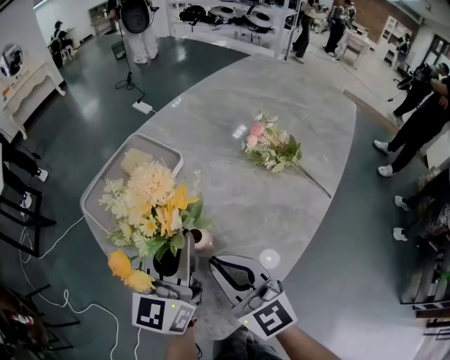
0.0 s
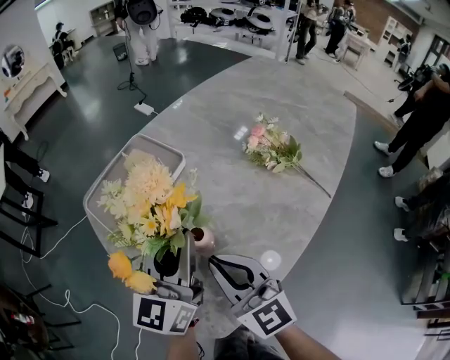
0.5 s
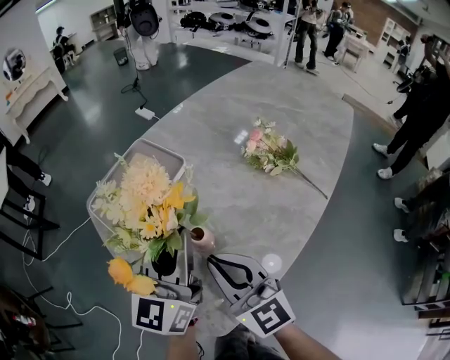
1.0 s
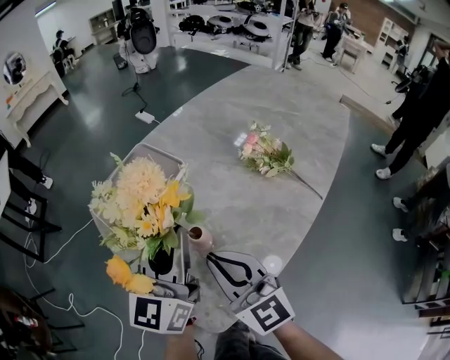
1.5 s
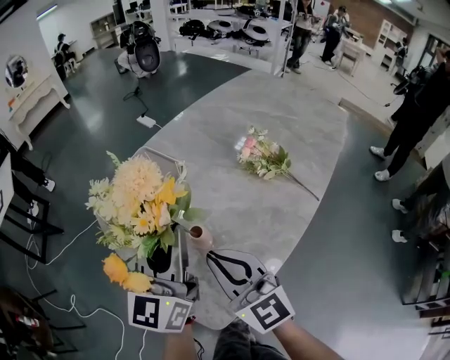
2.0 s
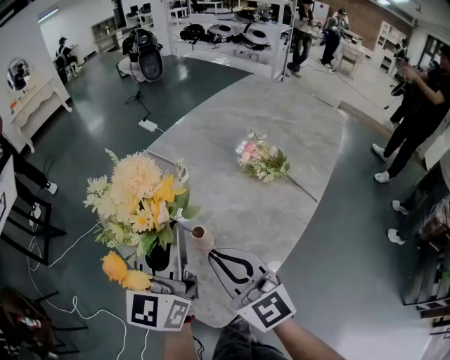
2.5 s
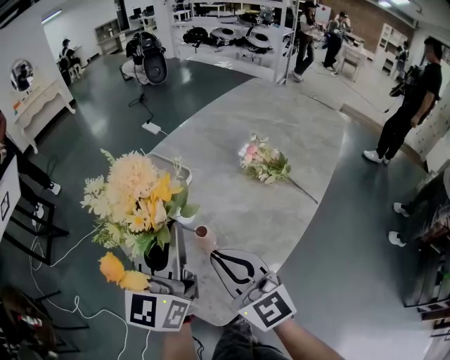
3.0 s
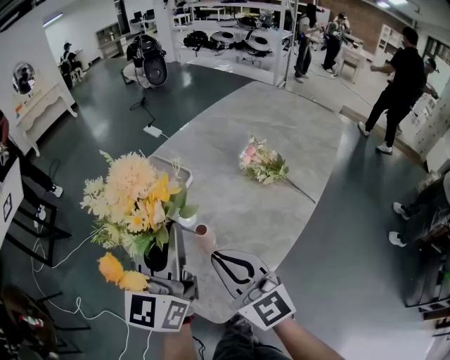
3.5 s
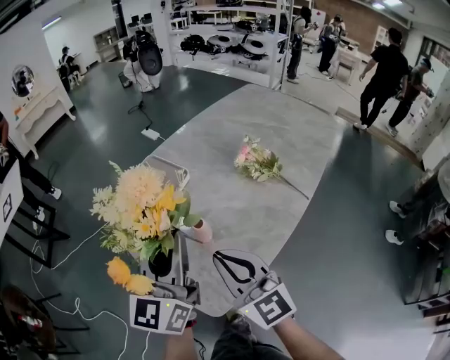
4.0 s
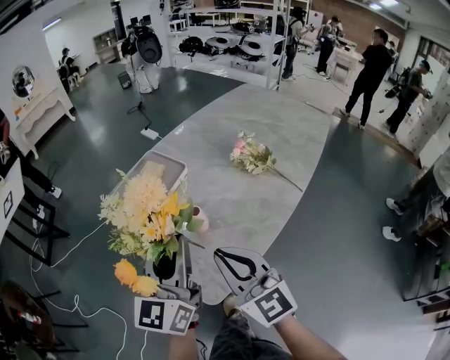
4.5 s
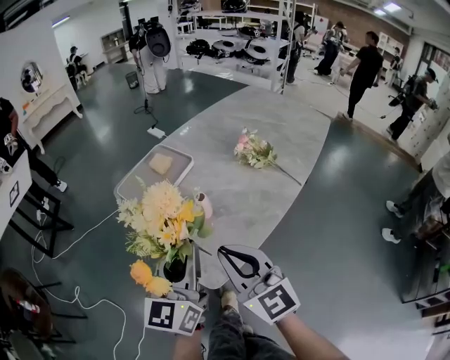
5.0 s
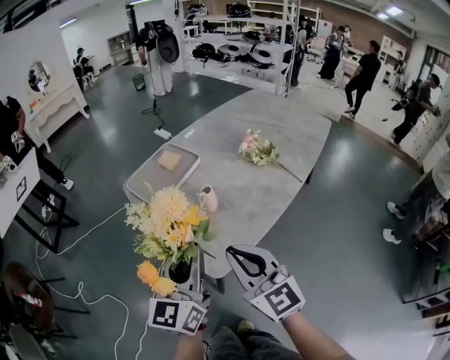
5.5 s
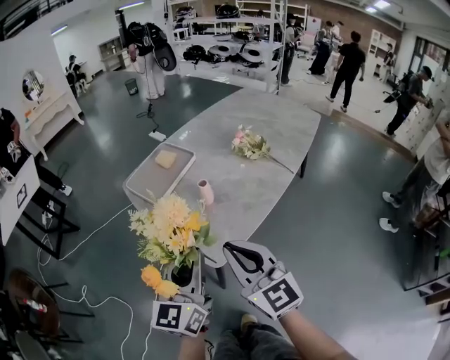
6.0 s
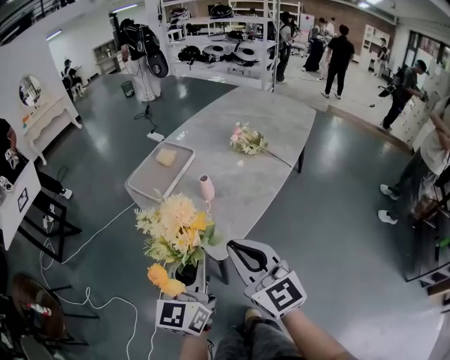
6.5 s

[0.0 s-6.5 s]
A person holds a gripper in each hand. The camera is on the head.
0.0 to 2.0 s: The left gripper is displaced upward by about 5 cm.
2.0 to 4.5 s: The grippers move only a little.
4.5 to 6.5 s: Both grippers travel together backward, about 25 cm.

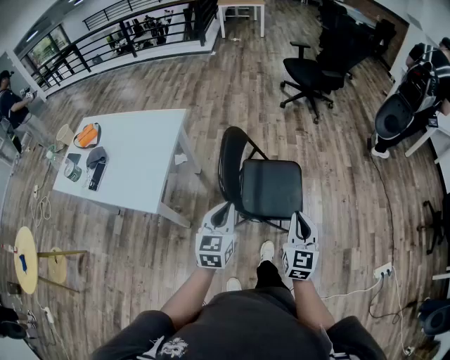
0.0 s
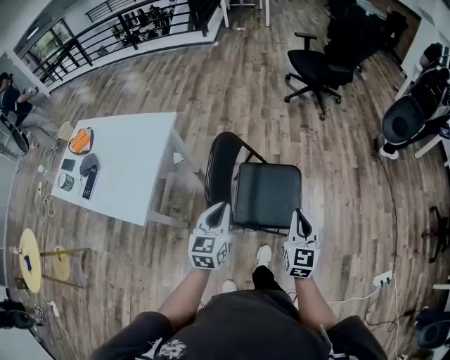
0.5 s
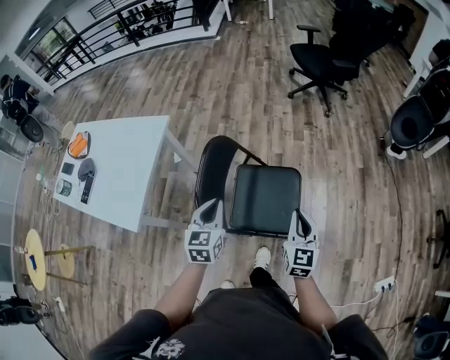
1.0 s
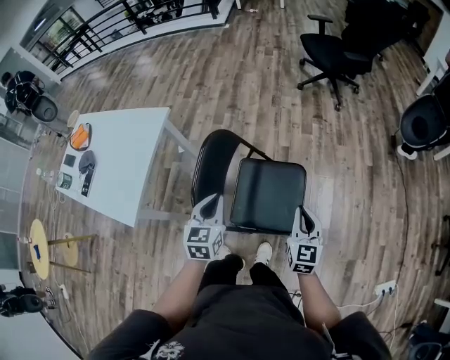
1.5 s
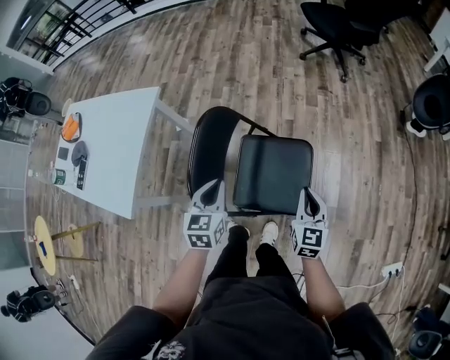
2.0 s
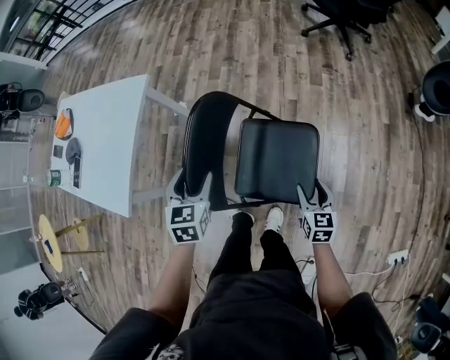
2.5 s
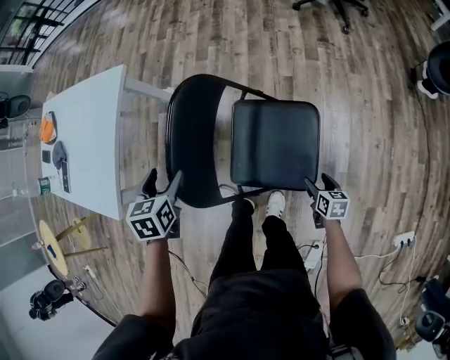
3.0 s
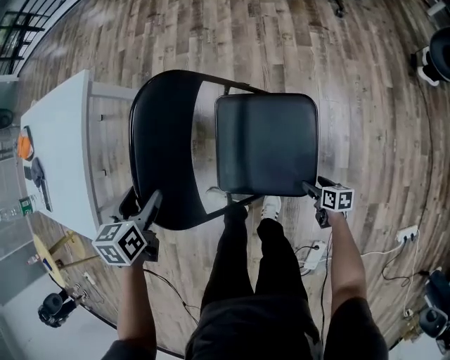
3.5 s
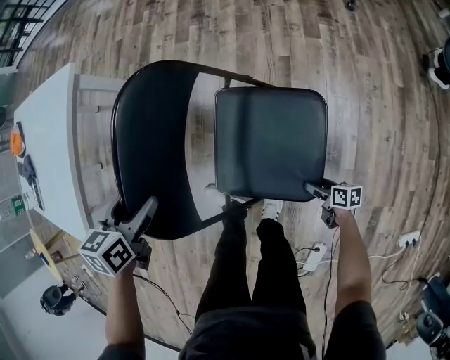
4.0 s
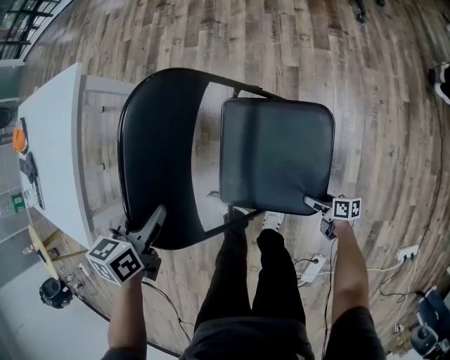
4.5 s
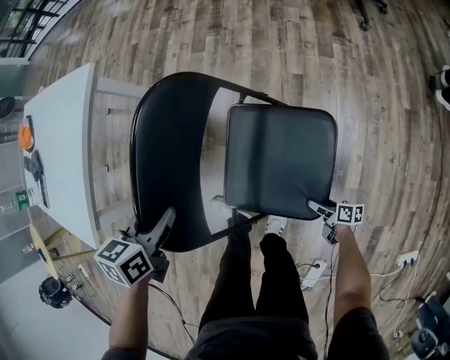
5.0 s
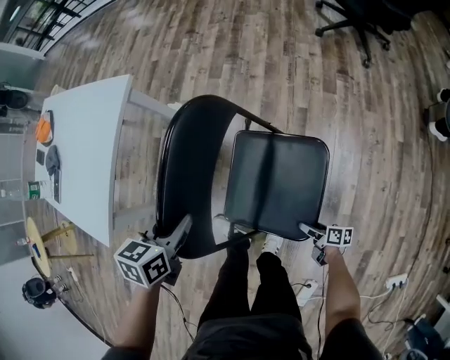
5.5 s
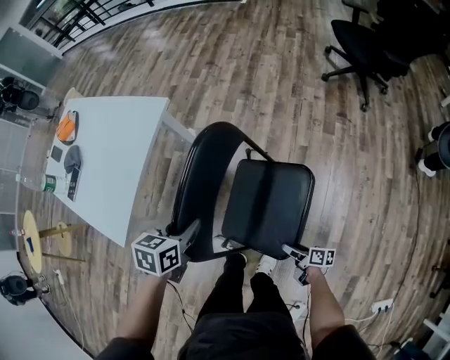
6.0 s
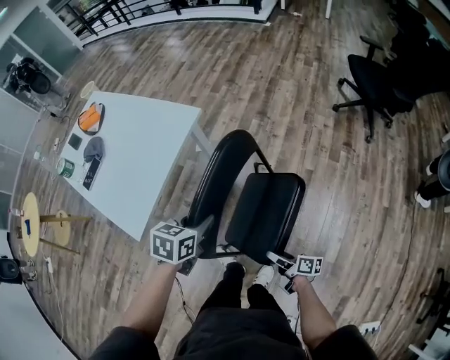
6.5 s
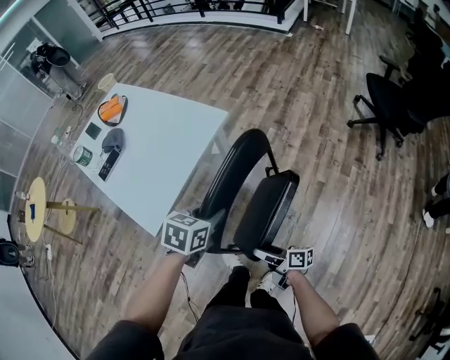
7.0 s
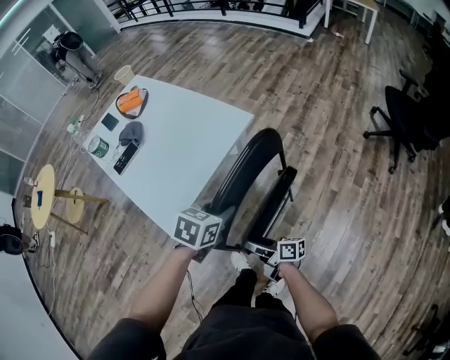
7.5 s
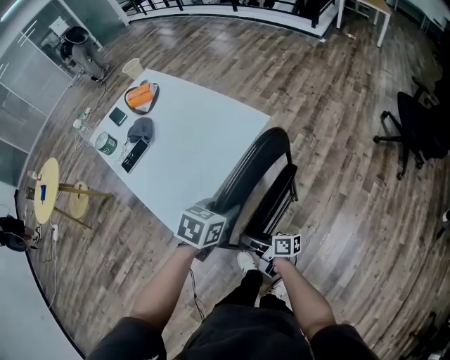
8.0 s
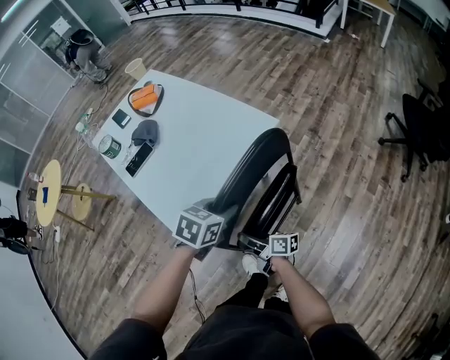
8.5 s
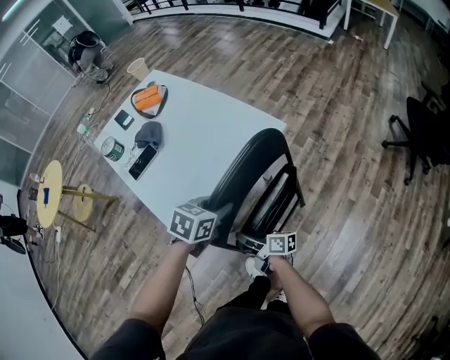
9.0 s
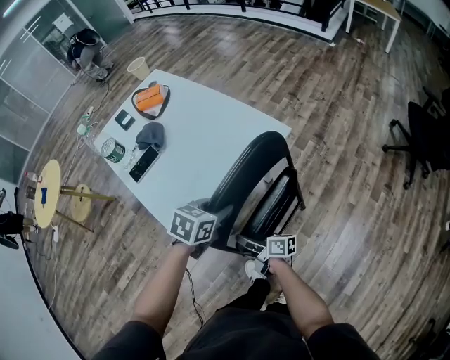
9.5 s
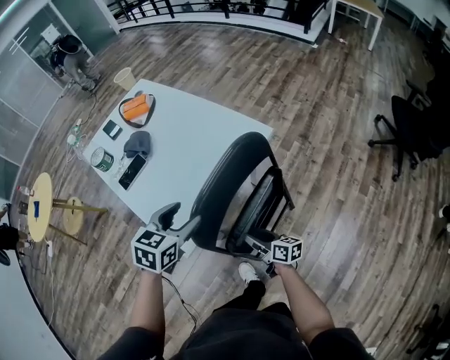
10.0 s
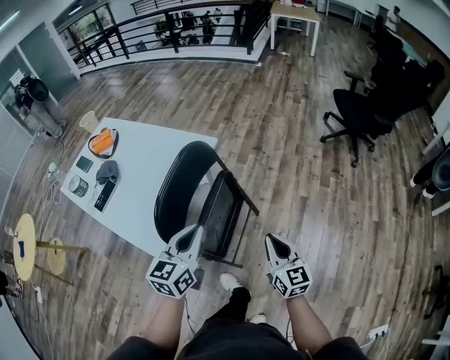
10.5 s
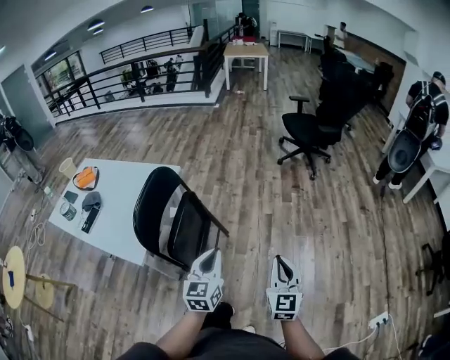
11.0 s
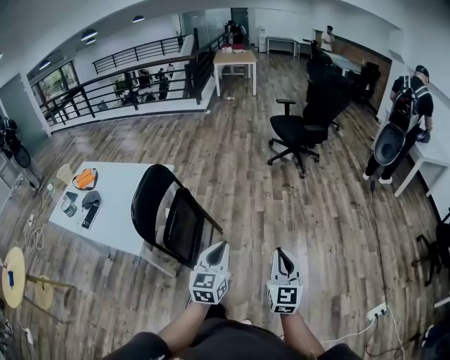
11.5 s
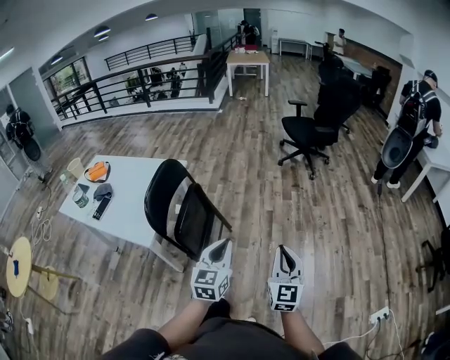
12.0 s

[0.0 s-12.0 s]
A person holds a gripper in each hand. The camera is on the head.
0.0 to 2.0 s: The left gripper shifts about 25 cm forward and downward; the right gripper moves forward, downward and to the right, roughly 35 cm.
2.0 to 4.0 s: The left gripper travels downward, to the left and forward by about 20 cm, swivels some 20 degrees, and opens. Meanwhile the right gripper is displaced downward by approximately 50 cm, turns by roughly 70 degrees, and opens.
4.0 to 6.0 s: The right gripper travels upward and to the left by about 25 cm. The left gripper travels upward by about 10 cm, and closes.
6.0 to 8.0 s: The right gripper goes some 50 cm to the left, forward and upward, and changes its angle by approximately 40 degrees; the left gripper moves to the left, forward and upward, roughly 20 cm.
8.0 to 10.0 s: The left gripper shifts approximately 15 cm to the left and forward, and opens; the right gripper heads forward, covering some 5 cm, travels to the left and back again, about 10 cm each way, and changes its angle by roughly 20 degrees.
10.0 to 12.0 s: Both grippers are carried about 50 cm. The left gripper tips its fingers upward by about 30 degrees, and closes its fingers; the right gripper rotates roughly 90 degrees, and closes.

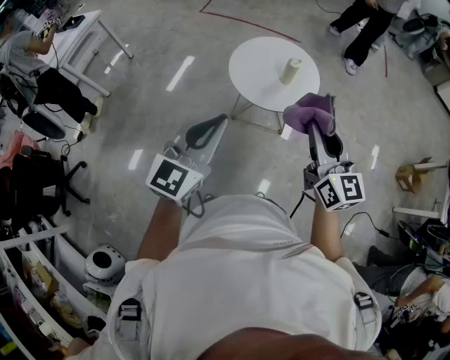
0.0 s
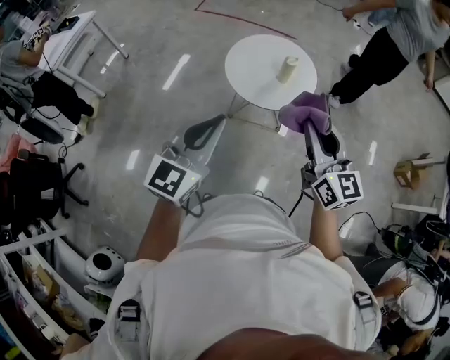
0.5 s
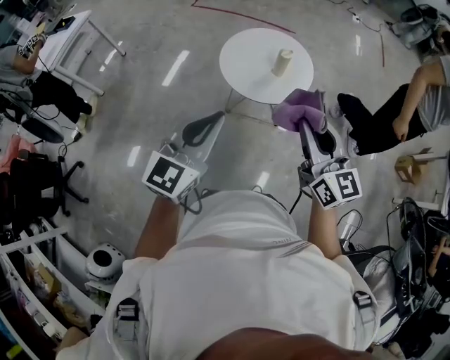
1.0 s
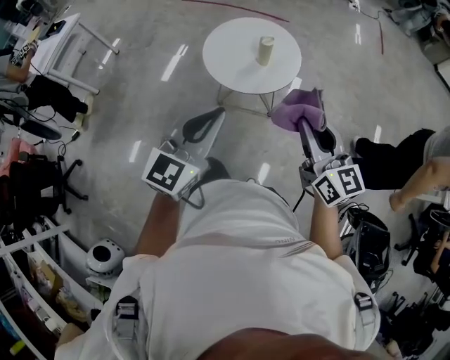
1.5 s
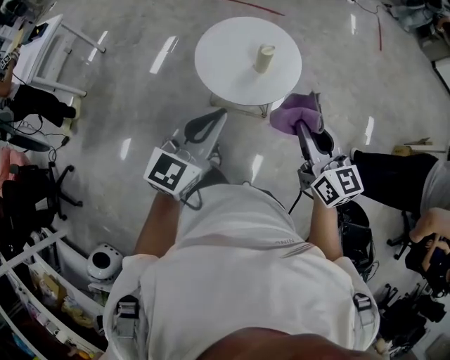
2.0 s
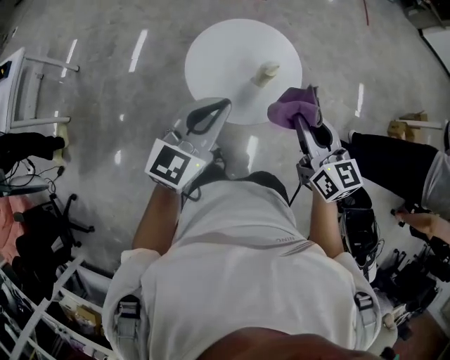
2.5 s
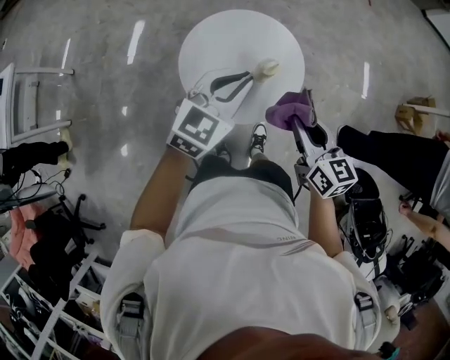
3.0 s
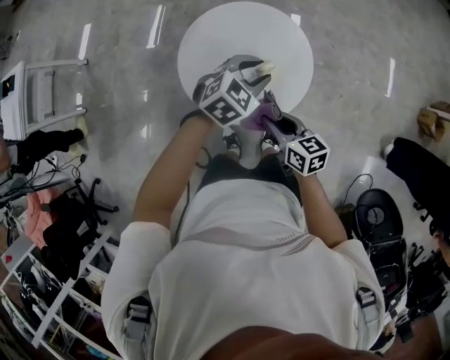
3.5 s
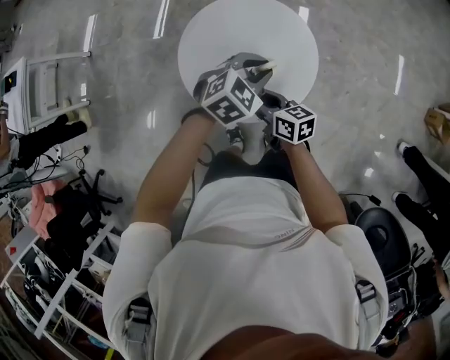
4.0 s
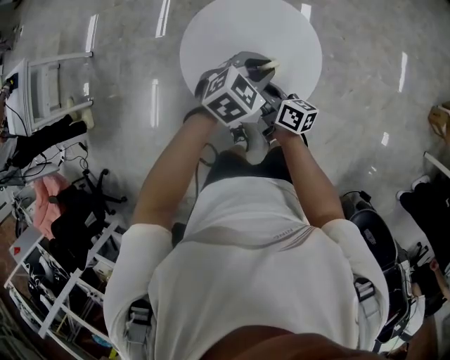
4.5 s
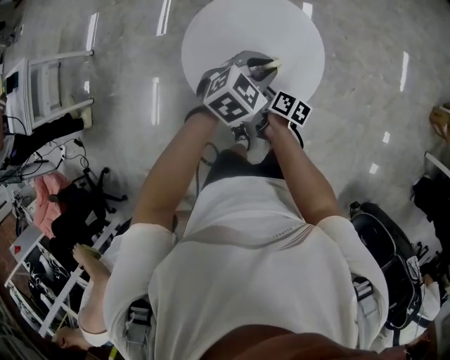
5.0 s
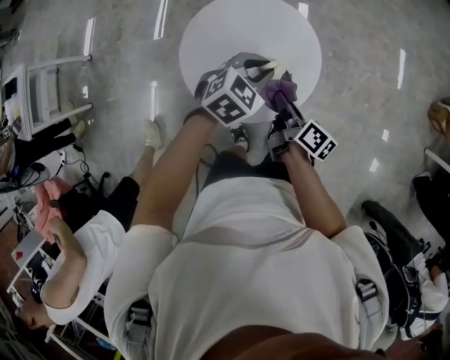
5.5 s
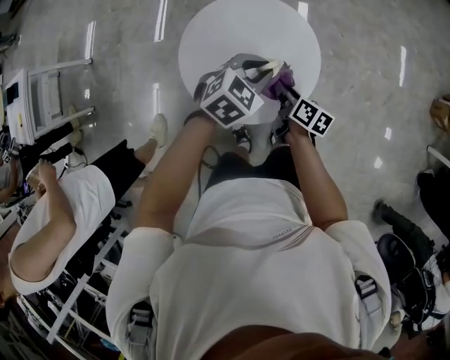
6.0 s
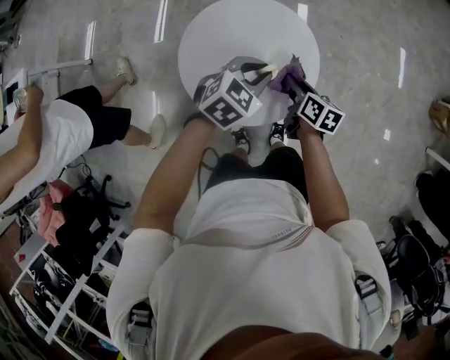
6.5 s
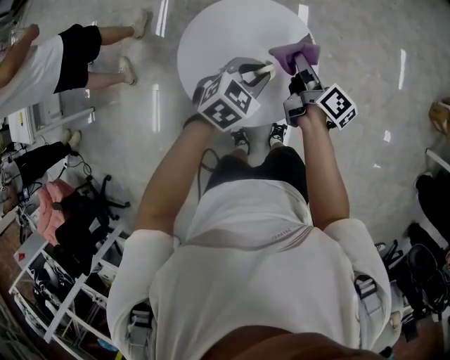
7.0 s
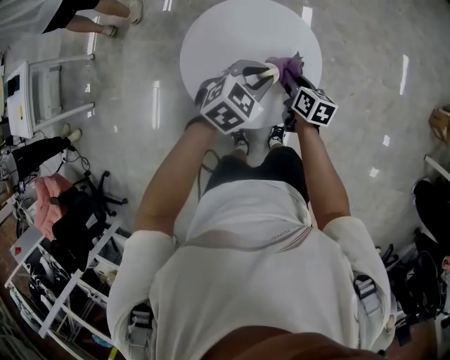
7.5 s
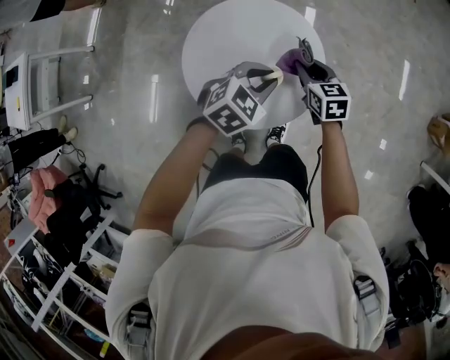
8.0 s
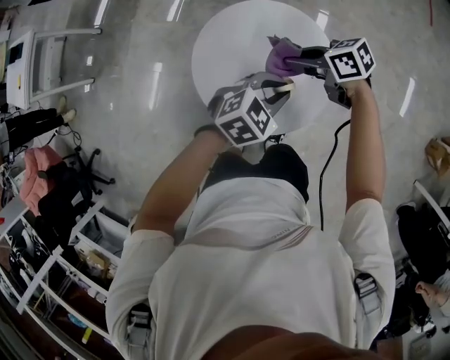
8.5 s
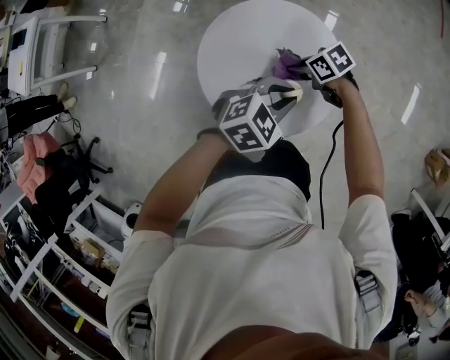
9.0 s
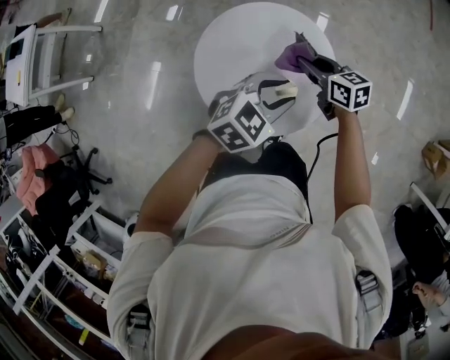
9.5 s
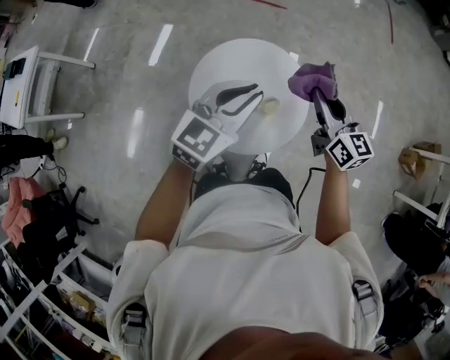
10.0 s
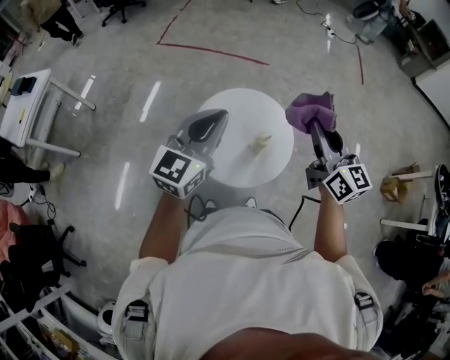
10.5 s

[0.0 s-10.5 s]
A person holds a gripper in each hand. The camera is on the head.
0.0 to 2.0 s: The right gripper goes about 15 cm forward, downward and to the right. The left gripper travels forward, to the right and downward by about 20 cm.
2.0 to 4.0 s: The left gripper goes roughly 50 cm forward and downward, and tilts its fingers approximately 40 degrees downward, while the right gripper goes approximately 40 cm downward, forward and to the left, and swivels about 40 degrees.
4.0 to 6.5 s: The right gripper goes some 15 cm to the right and forward, and changes its angle by some 30 degrees.
6.5 to 8.5 s: The right gripper swings up and down, about 10 cm each way, with 2 reversals, and swivels about 70 degrees.
8.5 to 10.5 s: Both grippers move upward, approximately 35 cm. The right gripper rotates some 80 degrees; the left gripper tilts its fingers some 40 degrees upward.
